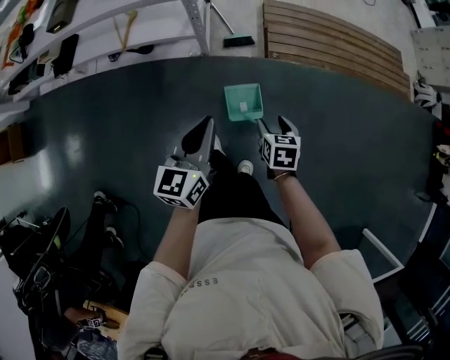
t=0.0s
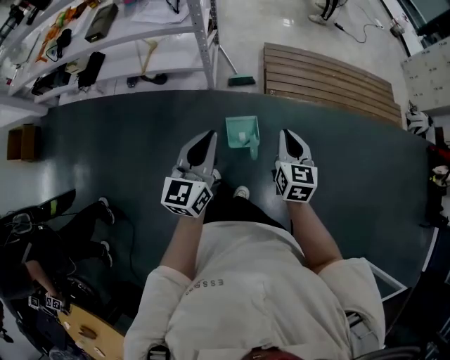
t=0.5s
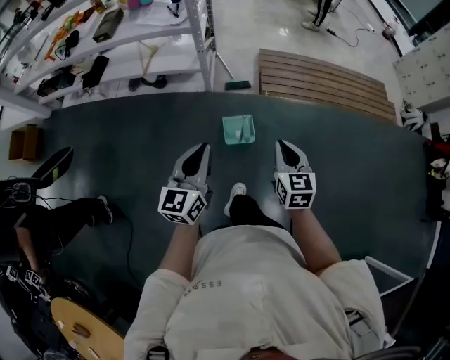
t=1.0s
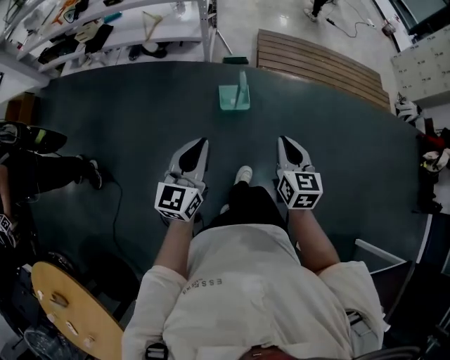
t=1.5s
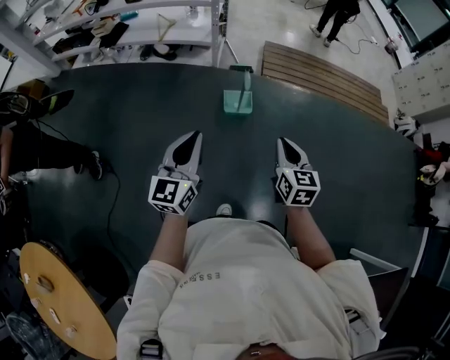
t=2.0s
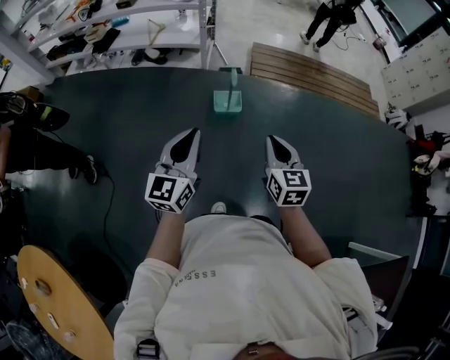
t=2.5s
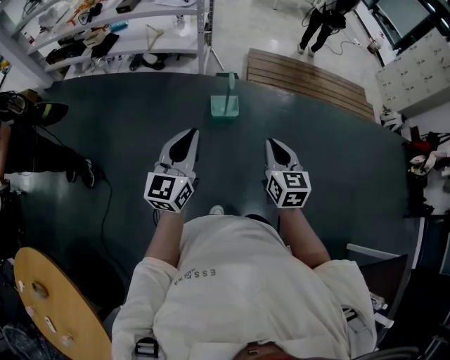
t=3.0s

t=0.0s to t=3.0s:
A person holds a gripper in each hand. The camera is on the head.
t=0.0s to t=1.5s: The left gripper heads backward, covering roughly 40 cm. Meanwhile the right gripper is displaced backward and upward by approximately 40 cm, turns by roughly 30 degrees, and closes up.
t=1.5s to t=3.0s: The left gripper goes roughly 10 cm backward and upward. Meanwhile the right gripper shifts some 10 cm backward.

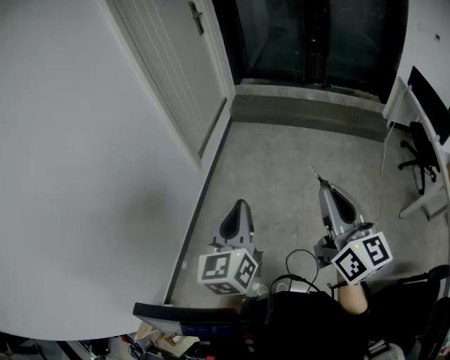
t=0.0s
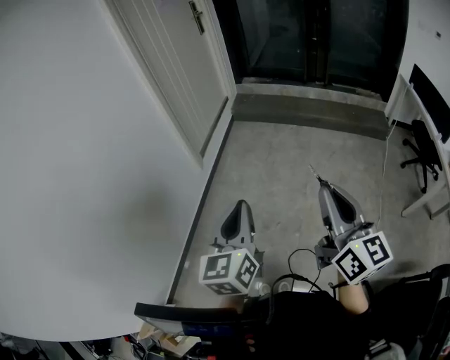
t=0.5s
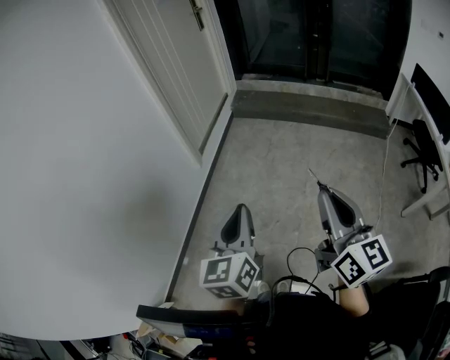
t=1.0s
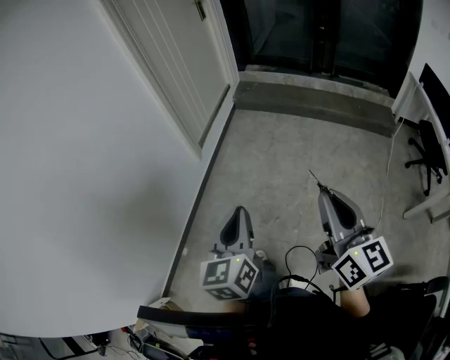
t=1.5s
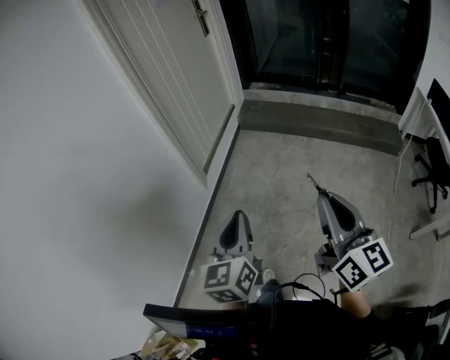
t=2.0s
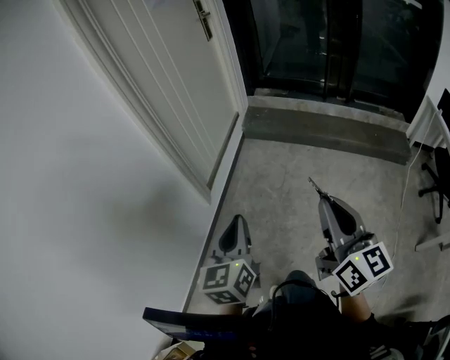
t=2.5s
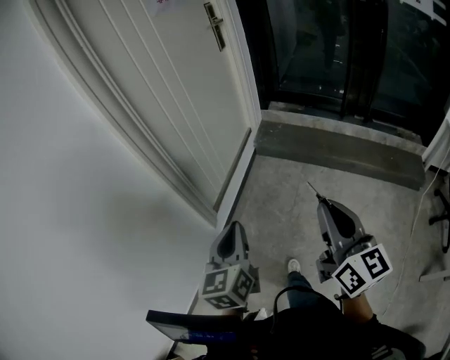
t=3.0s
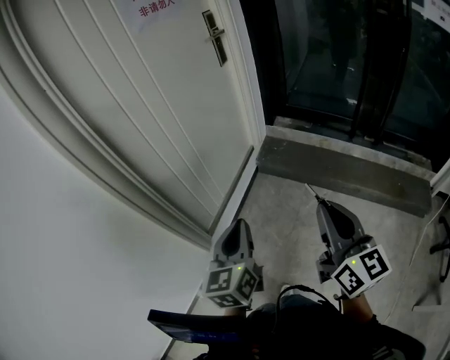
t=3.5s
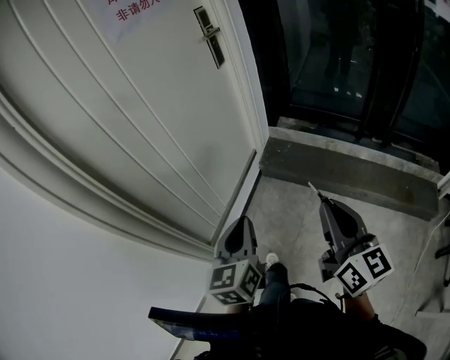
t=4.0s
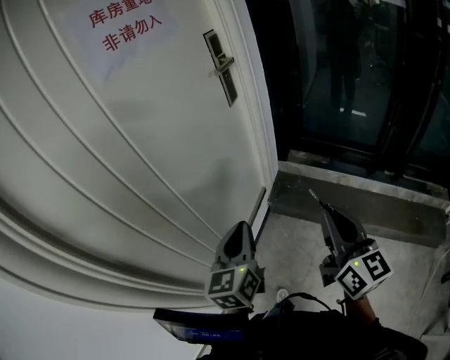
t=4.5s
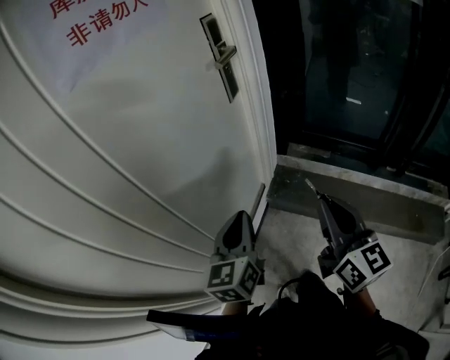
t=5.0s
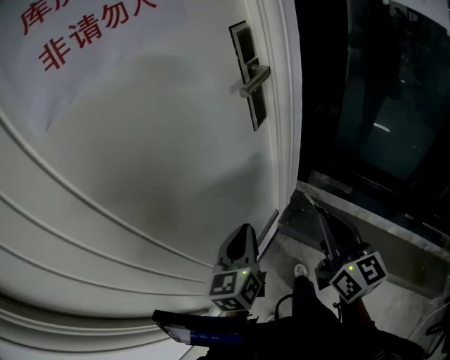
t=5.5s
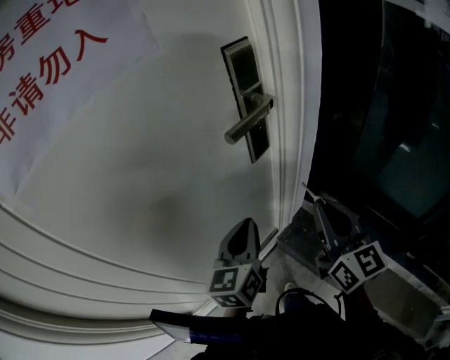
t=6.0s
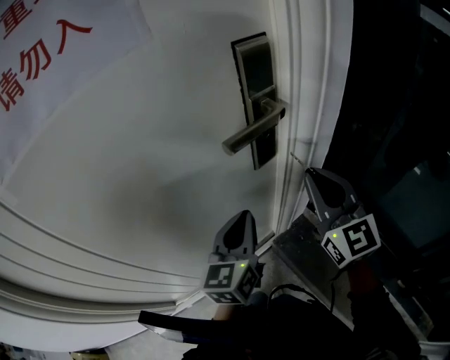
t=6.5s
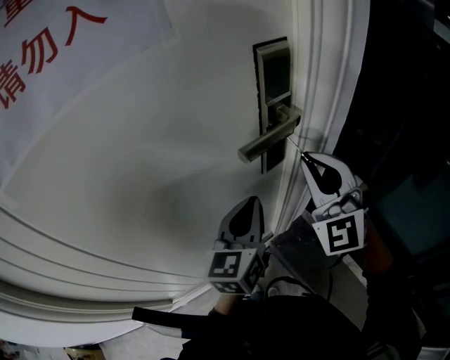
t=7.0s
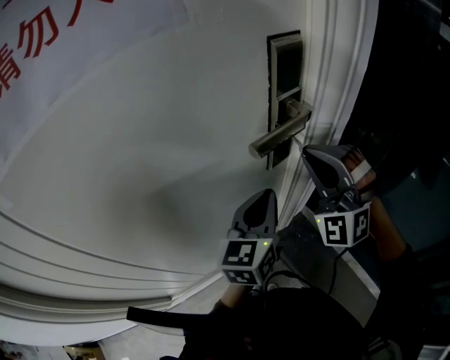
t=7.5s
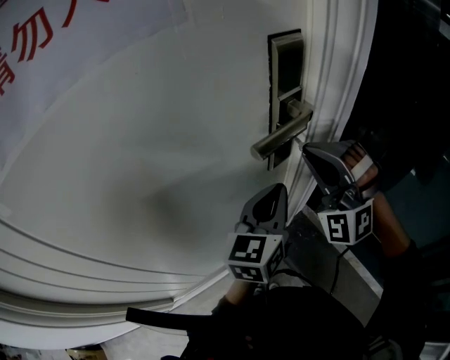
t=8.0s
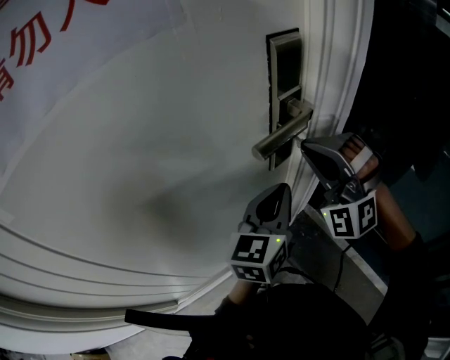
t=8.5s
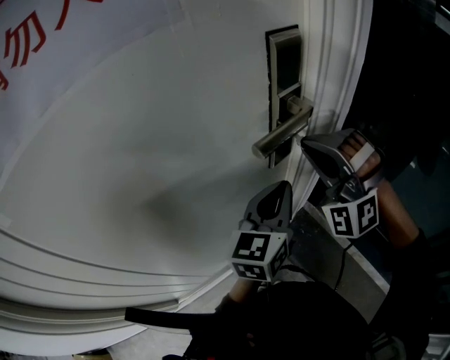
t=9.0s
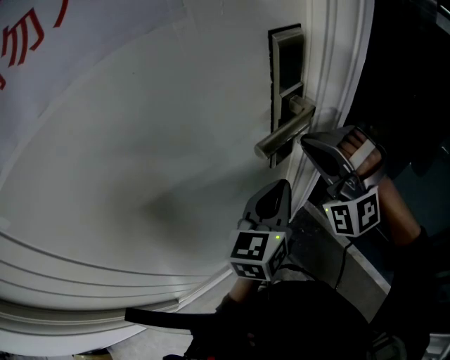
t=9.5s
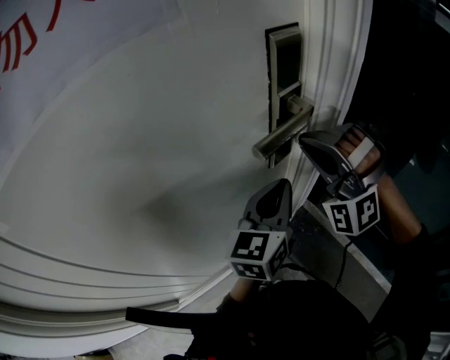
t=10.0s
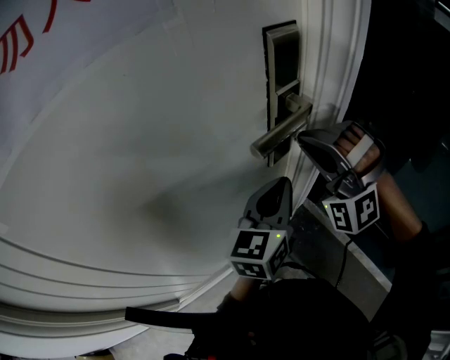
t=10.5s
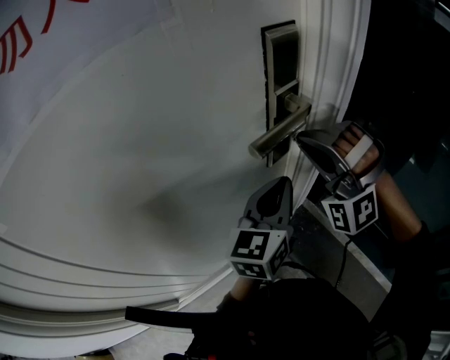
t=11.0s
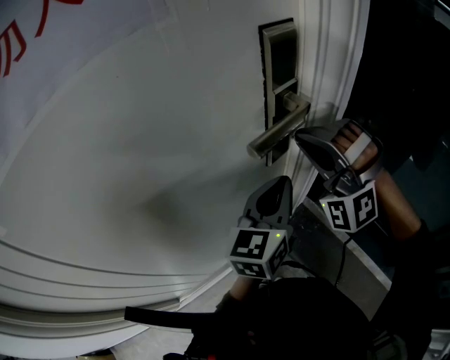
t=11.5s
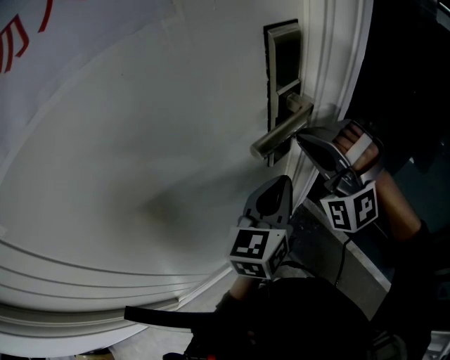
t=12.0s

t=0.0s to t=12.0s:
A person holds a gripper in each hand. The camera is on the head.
t=0.0s to t=2.0s: Both grippers travel together forward, some 20 cm.
t=2.0s to t=4.0s: The pair of grippers is taken forward, approximately 60 cm.
t=4.0s to t=6.0s: The pair of grippers is taken forward, approximately 60 cm. The right gripper turns by some 20 degrees.
t=6.0s to t=8.0s: The right gripper is displaced forward by roughly 15 cm, and rolls counterclockwise, seen from behind, by about 90 degrees. Meanwhile the left gripper is displaced forward and to the right by approximately 10 cm.
t=8.0s to t=10.0s: The grippers make only small movements.
t=10.0s to t=12.0s: Both grippers stay about where they are.

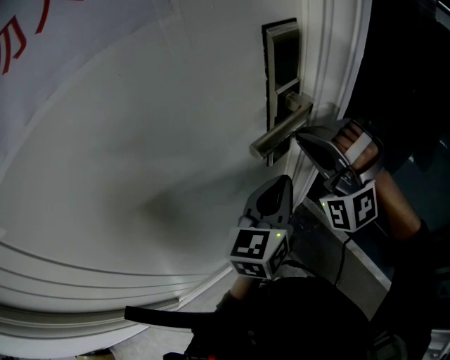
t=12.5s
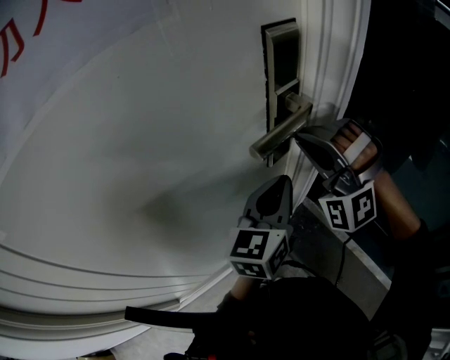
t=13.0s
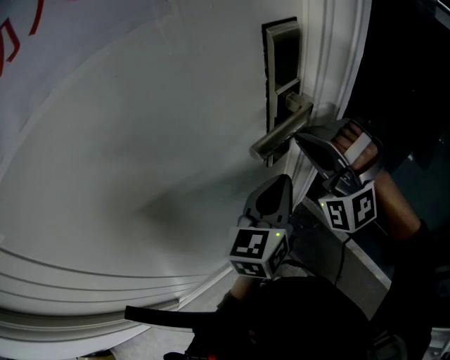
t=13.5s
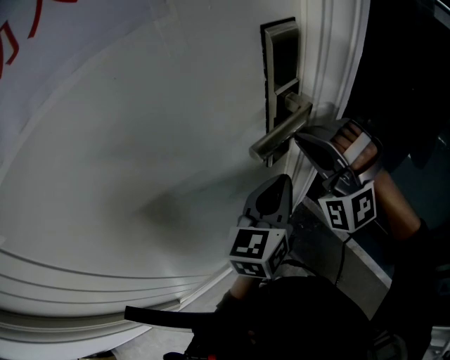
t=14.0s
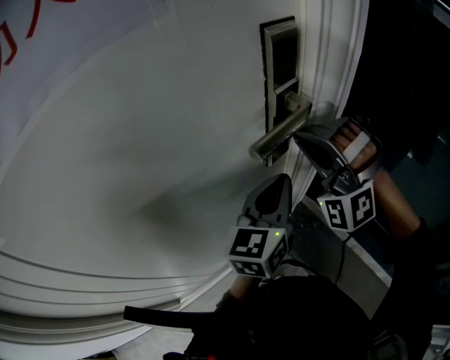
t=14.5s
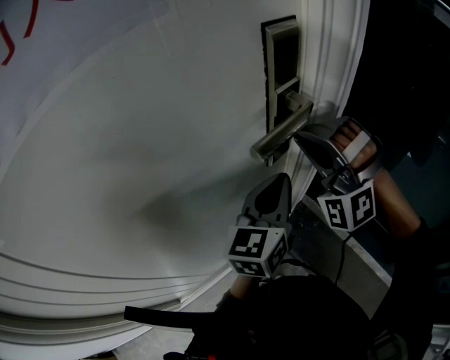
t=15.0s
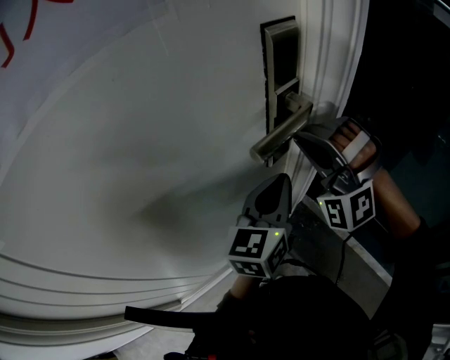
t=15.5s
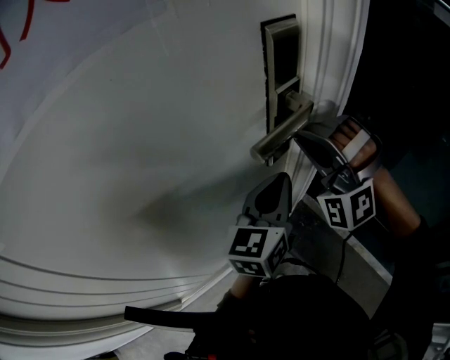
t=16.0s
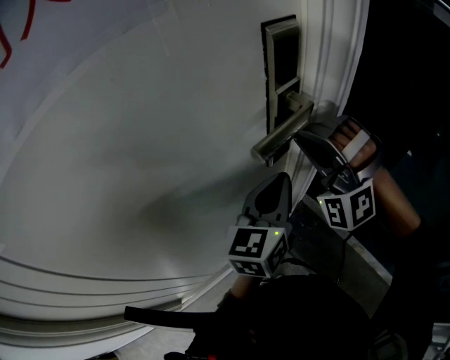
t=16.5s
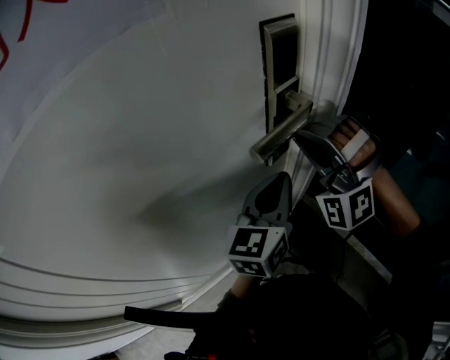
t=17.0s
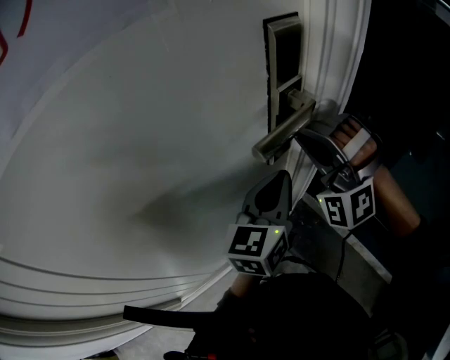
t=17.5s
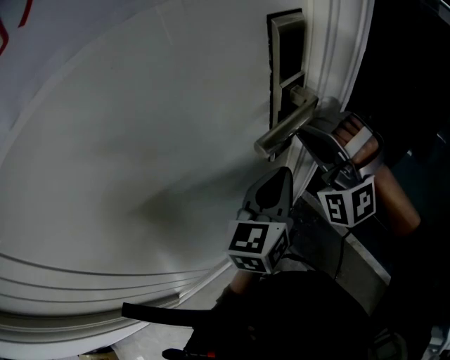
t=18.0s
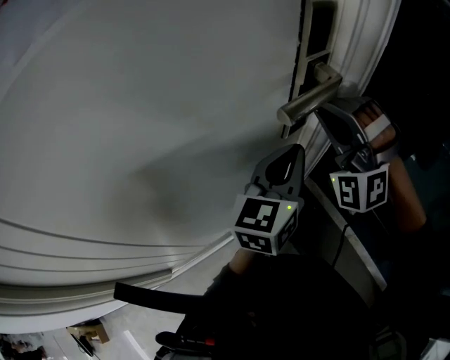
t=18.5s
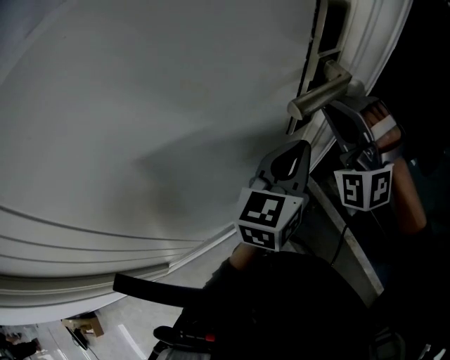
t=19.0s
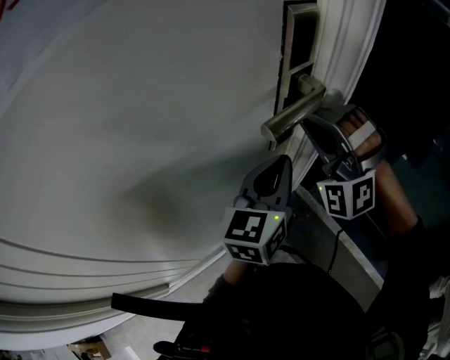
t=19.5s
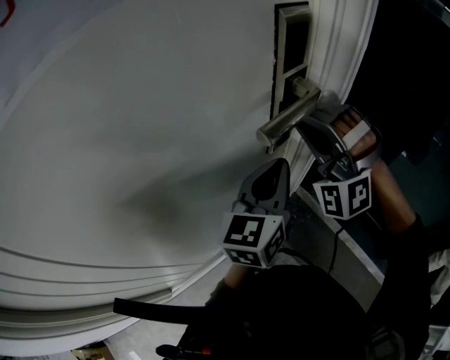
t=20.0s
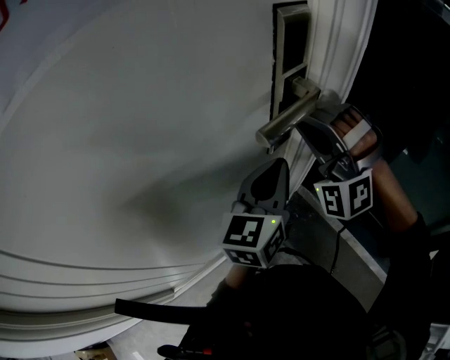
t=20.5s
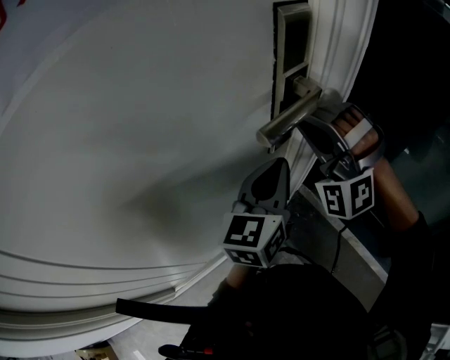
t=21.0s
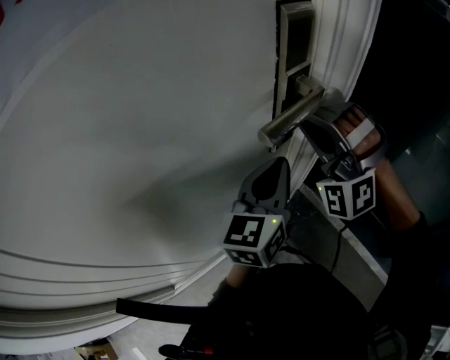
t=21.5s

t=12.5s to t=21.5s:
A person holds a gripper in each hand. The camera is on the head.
t=12.5s to t=17.0s: The two grippers keep their place.
t=17.0s to t=21.5s: Neither gripper changes place.

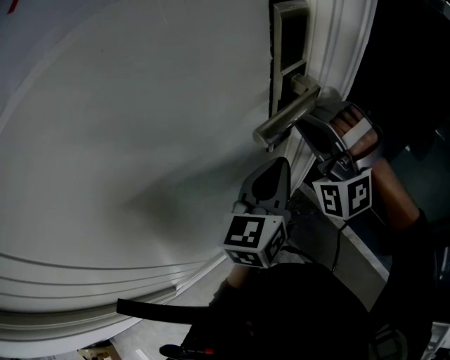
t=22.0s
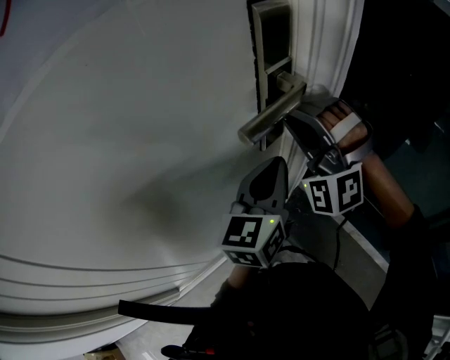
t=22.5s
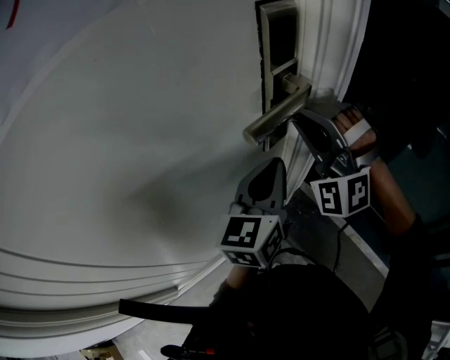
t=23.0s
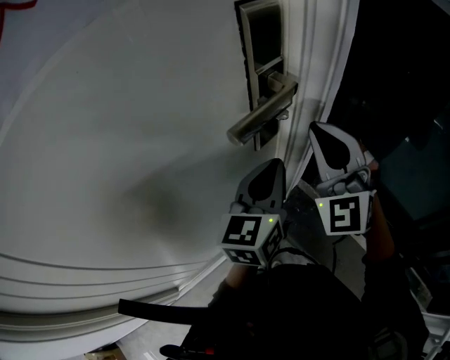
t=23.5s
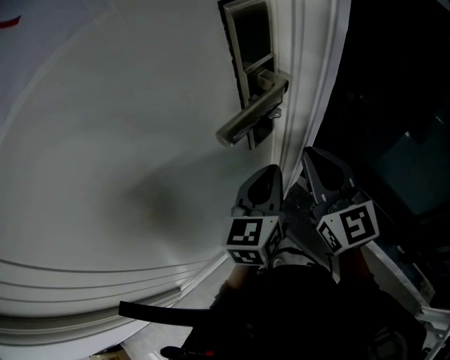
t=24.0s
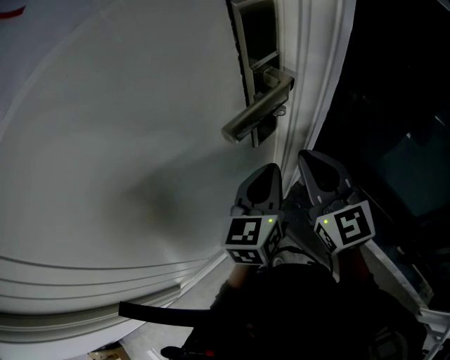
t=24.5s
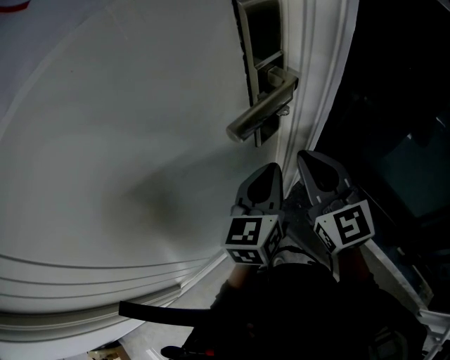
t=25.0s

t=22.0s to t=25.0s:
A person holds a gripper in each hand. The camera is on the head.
t=22.0s to t=23.5s: The right gripper goes some 5 cm to the right, and rolls clockwise, seen from behind, by roughly 40 degrees.
t=23.5s to t=25.0s: The right gripper is displaced downward by some 5 cm, and twists approximately 40 degrees clockwise, seen from behind.
